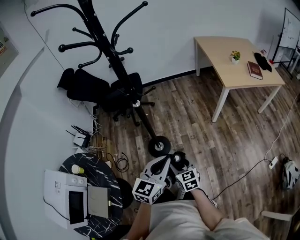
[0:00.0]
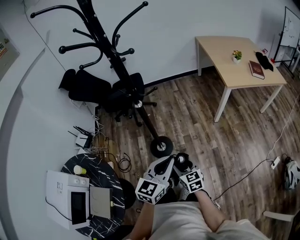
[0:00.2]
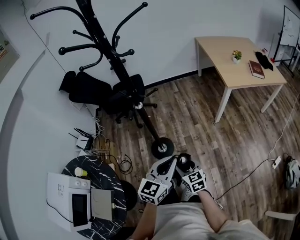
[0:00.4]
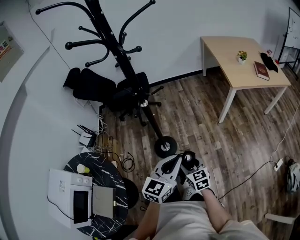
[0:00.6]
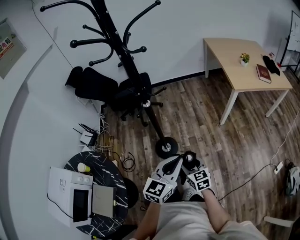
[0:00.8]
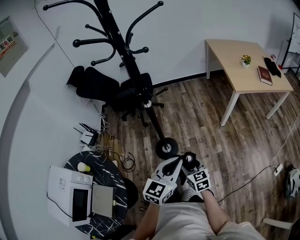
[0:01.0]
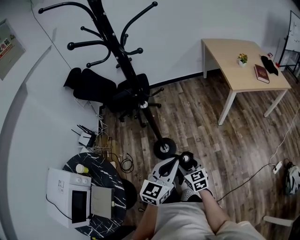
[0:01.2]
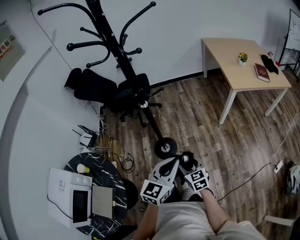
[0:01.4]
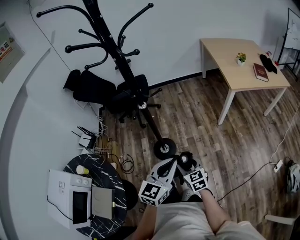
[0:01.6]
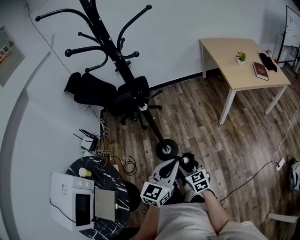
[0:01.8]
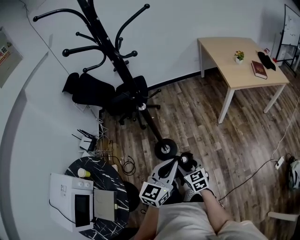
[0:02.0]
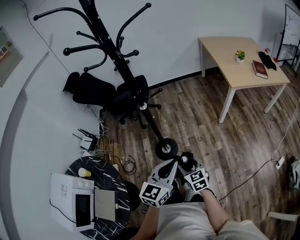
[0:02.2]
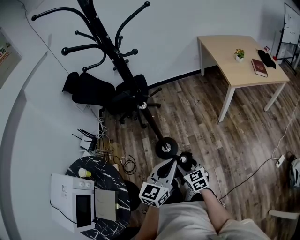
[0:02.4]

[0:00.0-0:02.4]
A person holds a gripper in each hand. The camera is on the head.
0:00.0 to 0:02.4: The grippers make only small movements.

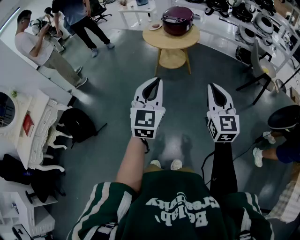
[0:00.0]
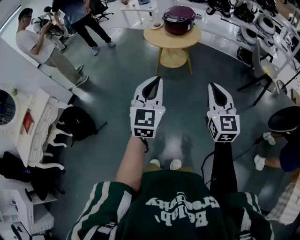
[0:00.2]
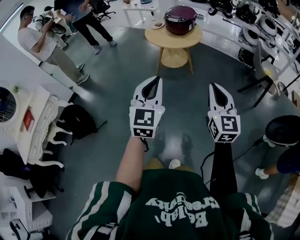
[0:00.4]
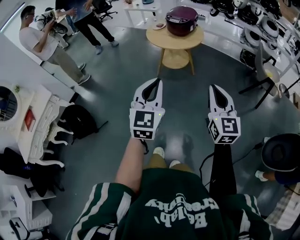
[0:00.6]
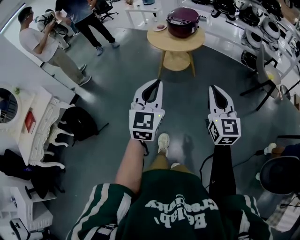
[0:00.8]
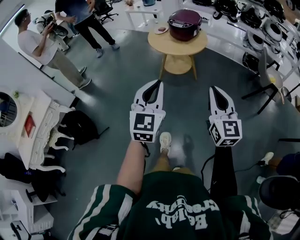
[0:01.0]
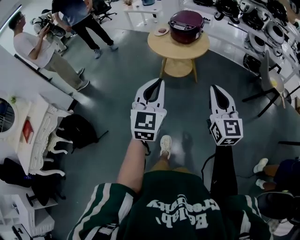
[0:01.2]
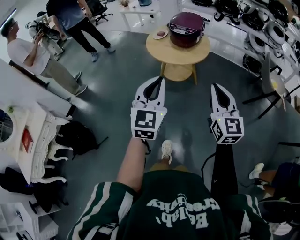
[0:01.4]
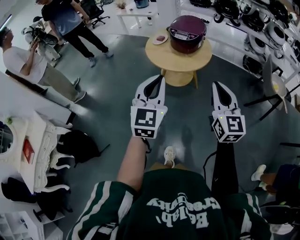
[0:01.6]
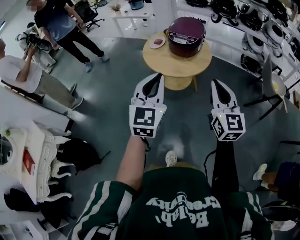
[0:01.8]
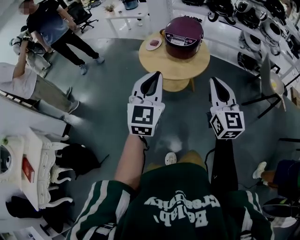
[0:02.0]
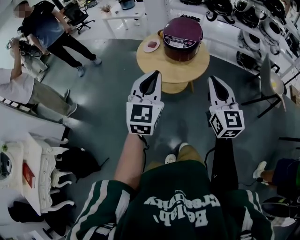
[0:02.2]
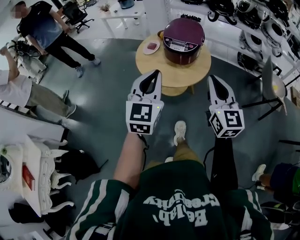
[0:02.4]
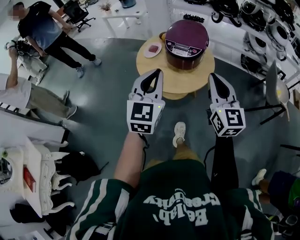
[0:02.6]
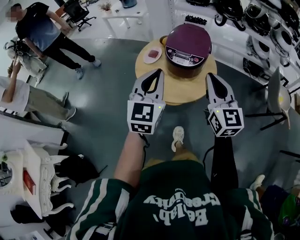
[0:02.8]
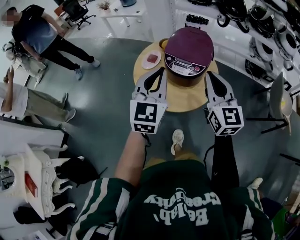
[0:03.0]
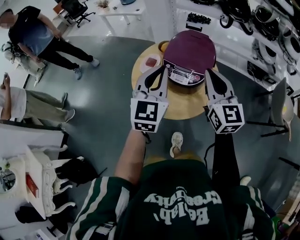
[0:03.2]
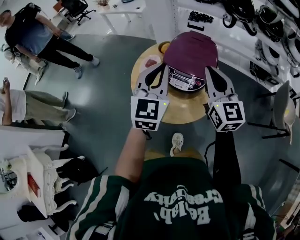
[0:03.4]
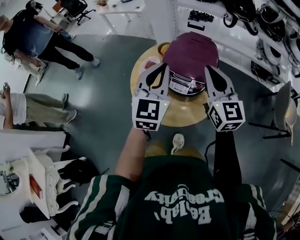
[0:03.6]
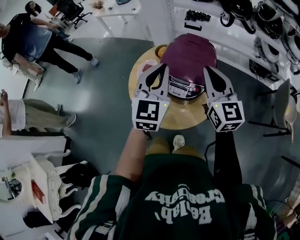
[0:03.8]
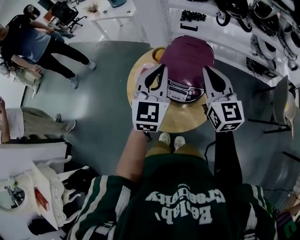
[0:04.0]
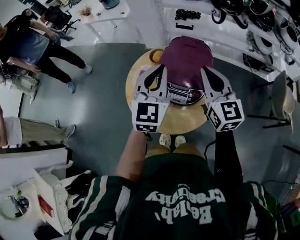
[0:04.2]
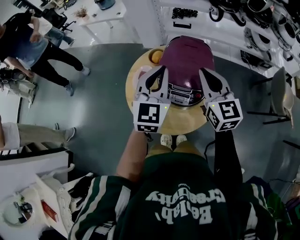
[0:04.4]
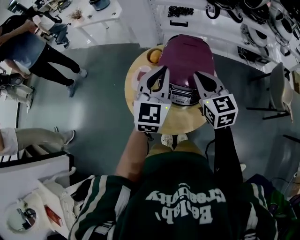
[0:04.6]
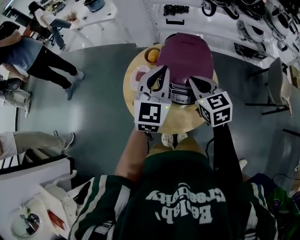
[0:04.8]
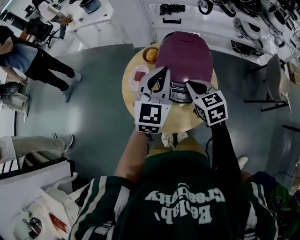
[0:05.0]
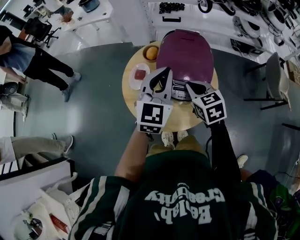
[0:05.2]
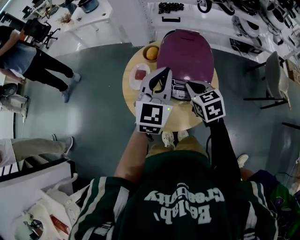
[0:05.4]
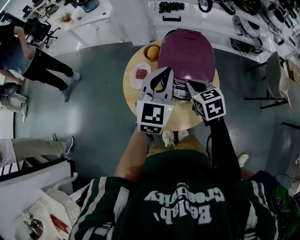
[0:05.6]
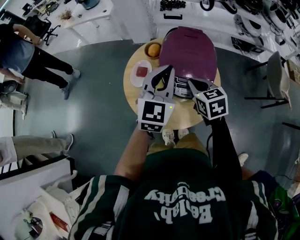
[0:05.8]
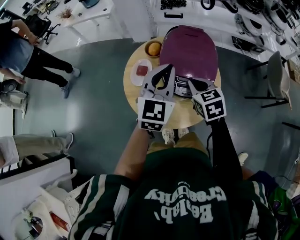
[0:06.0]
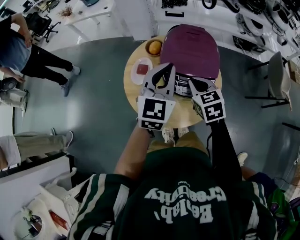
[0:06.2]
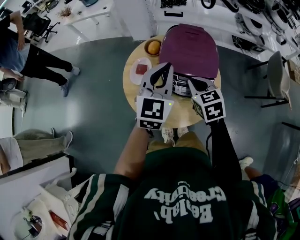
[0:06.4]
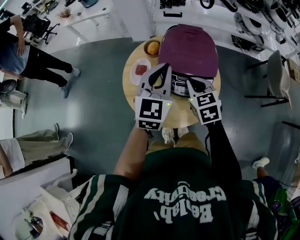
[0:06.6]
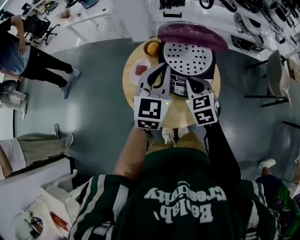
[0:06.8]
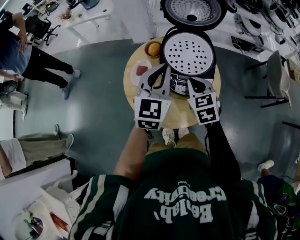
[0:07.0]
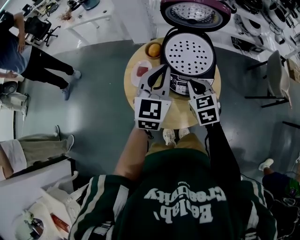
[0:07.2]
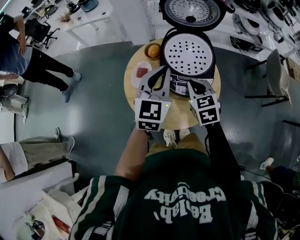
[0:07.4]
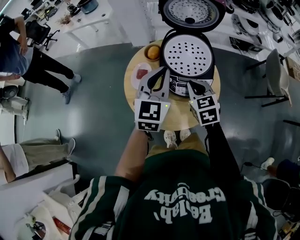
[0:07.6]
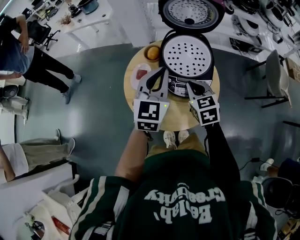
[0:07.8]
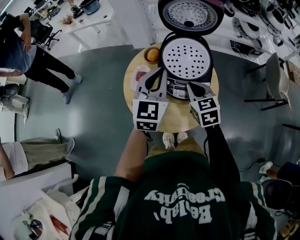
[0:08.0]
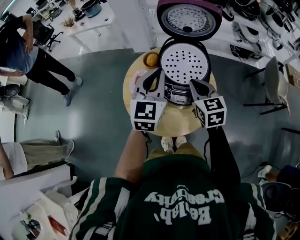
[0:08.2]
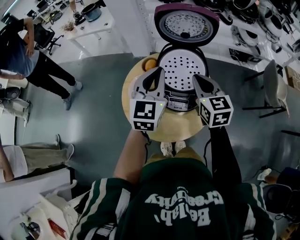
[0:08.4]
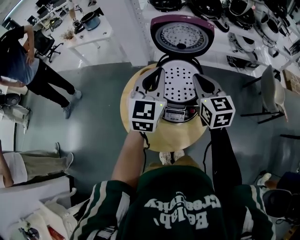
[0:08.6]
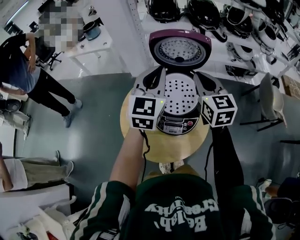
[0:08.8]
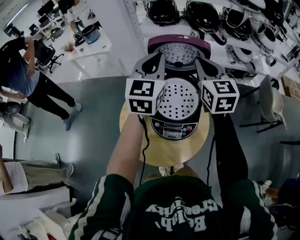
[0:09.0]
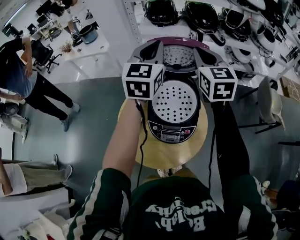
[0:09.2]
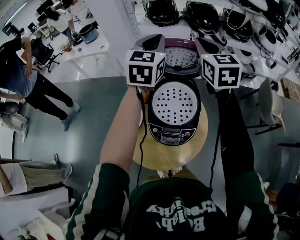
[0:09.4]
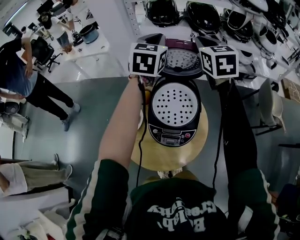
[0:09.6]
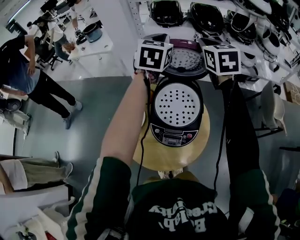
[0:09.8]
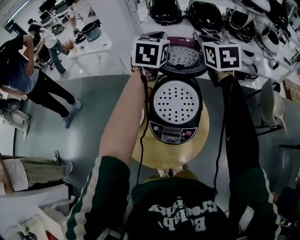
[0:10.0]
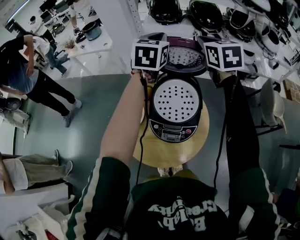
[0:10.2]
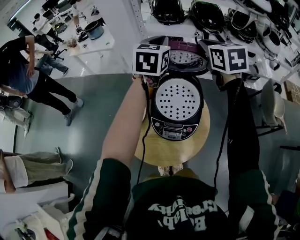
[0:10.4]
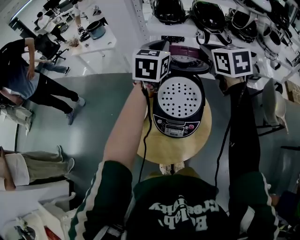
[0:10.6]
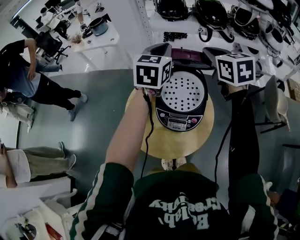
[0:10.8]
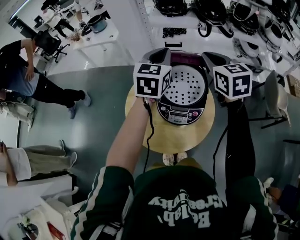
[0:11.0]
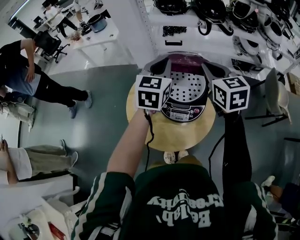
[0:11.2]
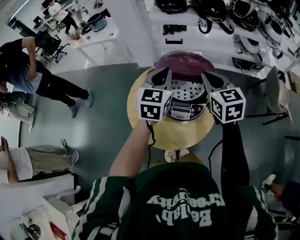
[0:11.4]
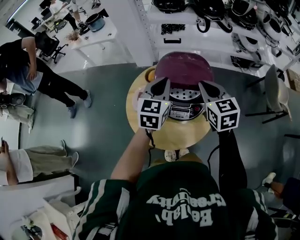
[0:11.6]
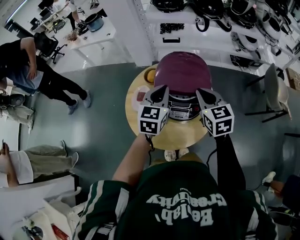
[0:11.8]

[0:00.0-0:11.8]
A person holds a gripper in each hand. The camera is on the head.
0:00.0 to 0:01.4: Both grippers travel together forward, about 25 cm.
0:01.4 to 0:03.0: The two grippers travel together, forward, about 50 cm.
0:03.0 to 0:04.4: Both grippers move forward, approximately 20 cm.
0:04.4 to 0:06.0: The right gripper heads downward, covering approximately 15 cm, and points its fingers some 30 degrees further downward.
0:06.0 to 0:07.4: The grippers make only small movements.
0:07.4 to 0:08.8: The right gripper shifts roughly 25 cm upward, forward and to the right, and changes its angle by approximately 30 degrees, while the left gripper moves forward and upward, about 15 cm.
0:08.8 to 0:10.4: The right gripper is displaced forward and upward by some 15 cm, while the left gripper heads forward, covering some 15 cm.
0:10.4 to 0:11.8: Both grippers move backward and downward, approximately 25 cm.

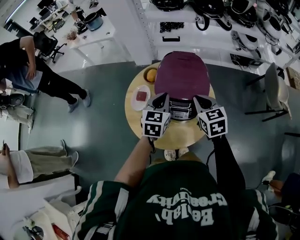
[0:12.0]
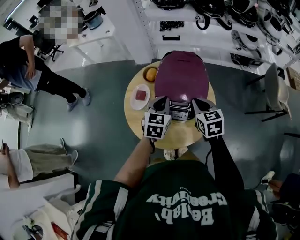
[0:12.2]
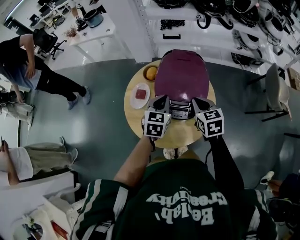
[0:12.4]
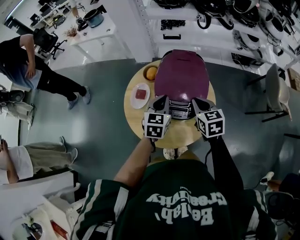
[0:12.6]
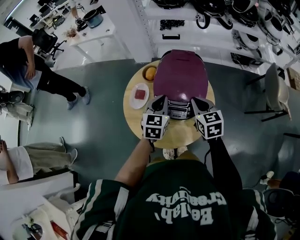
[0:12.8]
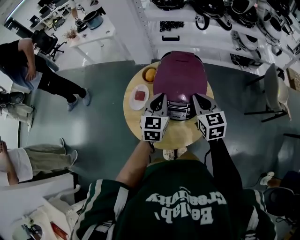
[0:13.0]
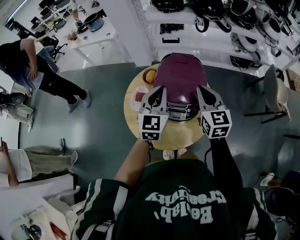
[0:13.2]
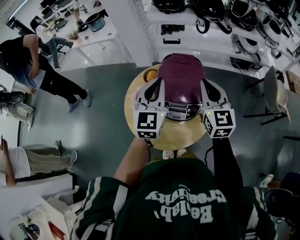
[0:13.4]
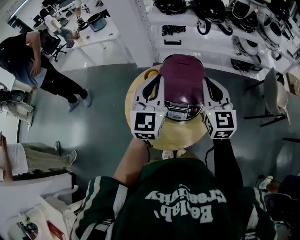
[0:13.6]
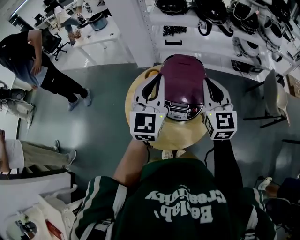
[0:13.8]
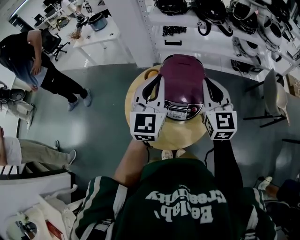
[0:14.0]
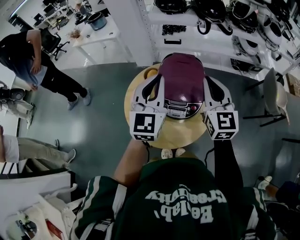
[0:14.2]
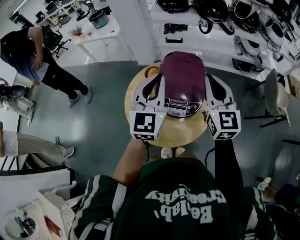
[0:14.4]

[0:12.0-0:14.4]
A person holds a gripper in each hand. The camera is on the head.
0:12.0 to 0:13.2: Both grippers move upward, about 5 cm. The right gripper changes its angle by approximately 20 degrees.
0:13.2 to 0:14.4: The grippers both shift upward by roughly 10 cm.

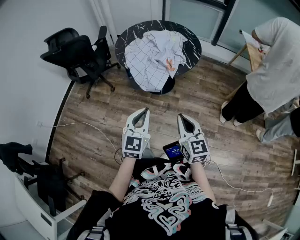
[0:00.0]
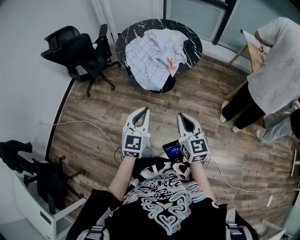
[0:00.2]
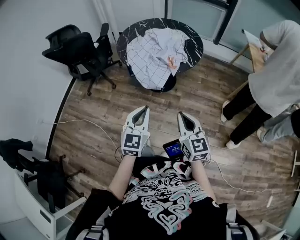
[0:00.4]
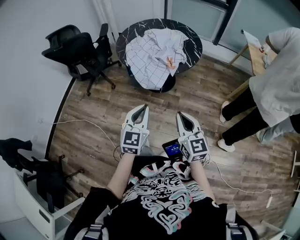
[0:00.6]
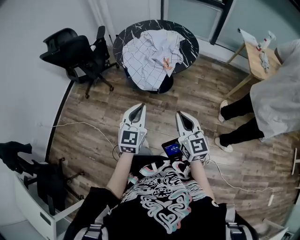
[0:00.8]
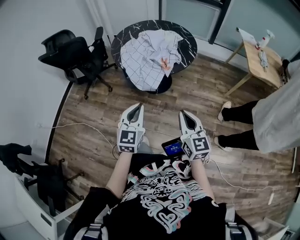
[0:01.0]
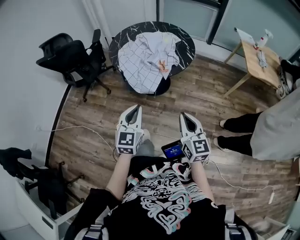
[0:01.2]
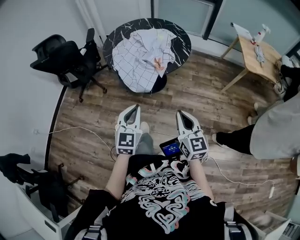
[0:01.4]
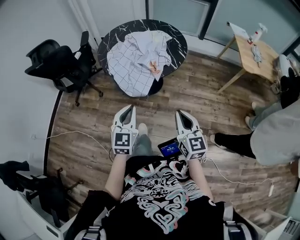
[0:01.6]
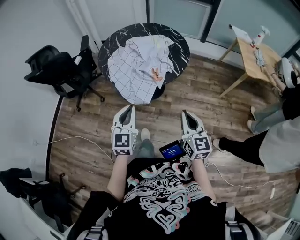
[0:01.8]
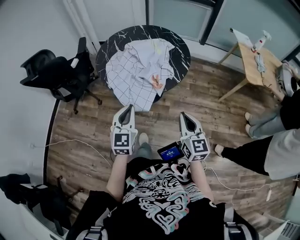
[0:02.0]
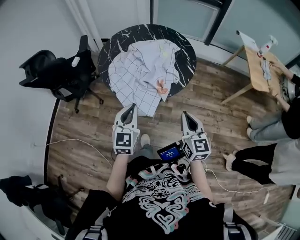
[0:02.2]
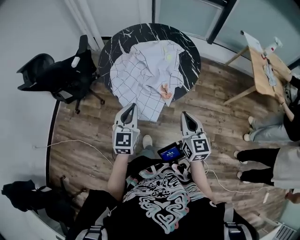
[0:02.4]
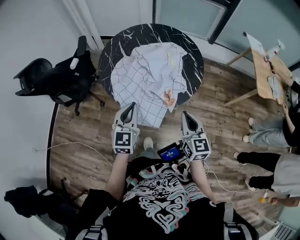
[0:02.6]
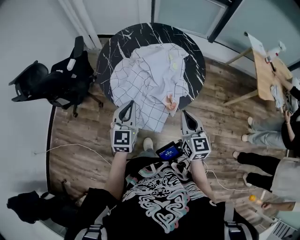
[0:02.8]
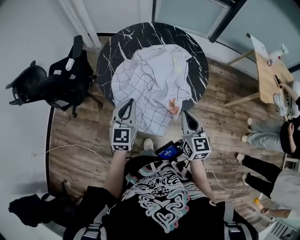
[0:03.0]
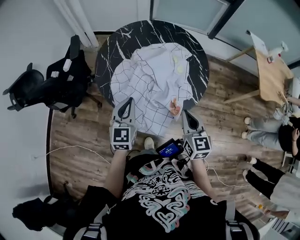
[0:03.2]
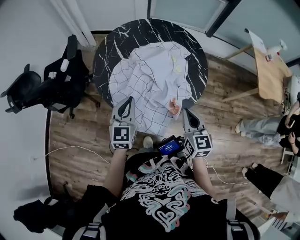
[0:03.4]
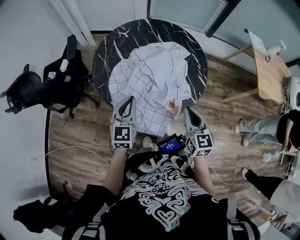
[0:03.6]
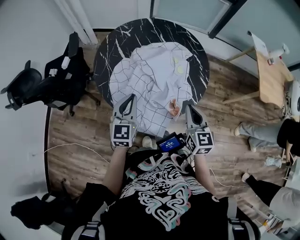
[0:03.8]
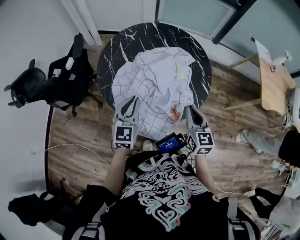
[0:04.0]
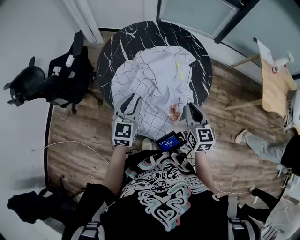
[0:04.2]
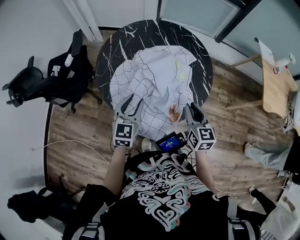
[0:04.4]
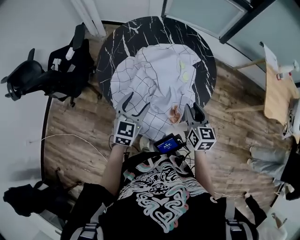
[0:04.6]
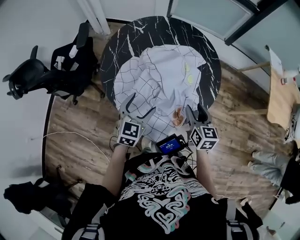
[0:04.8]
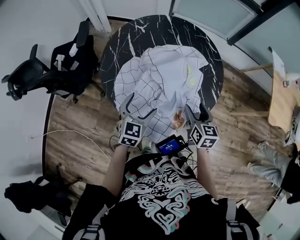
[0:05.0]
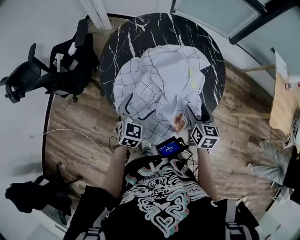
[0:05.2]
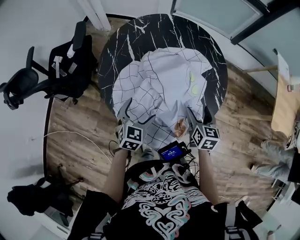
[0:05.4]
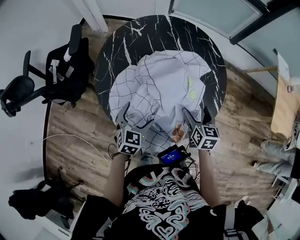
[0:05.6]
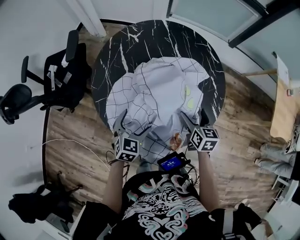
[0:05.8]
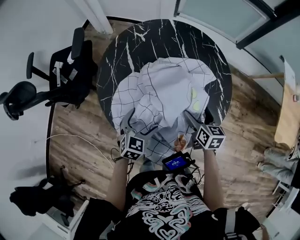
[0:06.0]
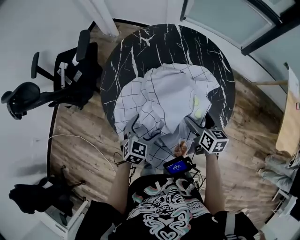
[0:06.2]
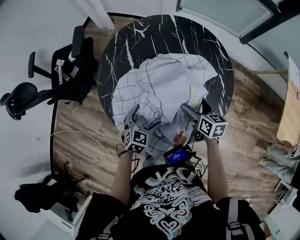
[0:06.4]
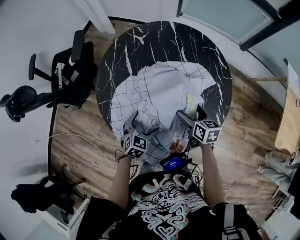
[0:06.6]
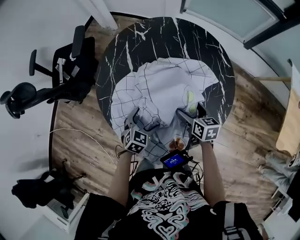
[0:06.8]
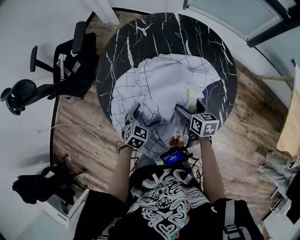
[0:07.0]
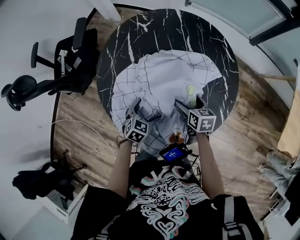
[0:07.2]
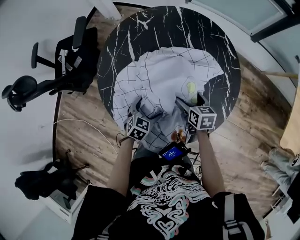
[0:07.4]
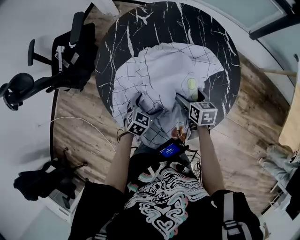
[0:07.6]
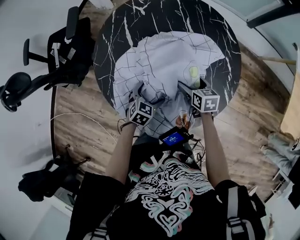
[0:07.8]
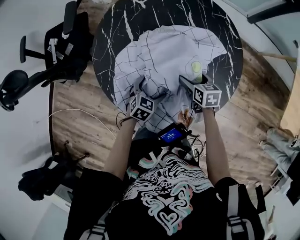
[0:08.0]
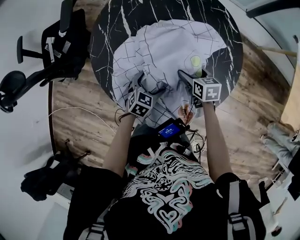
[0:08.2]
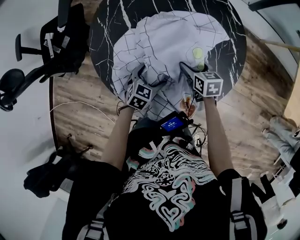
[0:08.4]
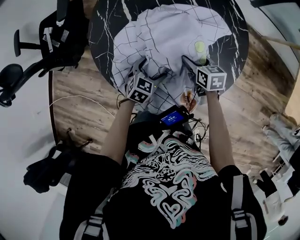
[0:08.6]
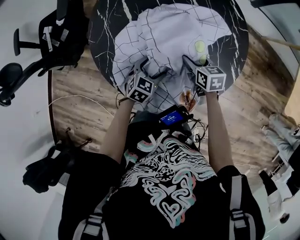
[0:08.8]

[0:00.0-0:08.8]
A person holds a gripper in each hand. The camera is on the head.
0:00.0 to 0:01.4: The right gripper shifts roughly 5 cm to the right.
0:01.4 to 0:03.0: The grippers both shift forward by roughly 35 cm.
0:03.0 to 0:04.4: The left gripper is displaced forward by some 5 cm. The right gripper goes about 10 cm forward.
0:04.4 to 0:05.8: The right gripper is displaced forward and downward by about 15 cm, and opens. Meanwhile the left gripper moves downward, roughly 15 cm, turns by roughly 20 degrees, and opens its fingers.
0:05.8 to 0:07.4: The left gripper shifts about 10 cm downward. The right gripper heads downward and forward, covering about 10 cm.
0:07.4 to 0:08.8: The right gripper closes up.
